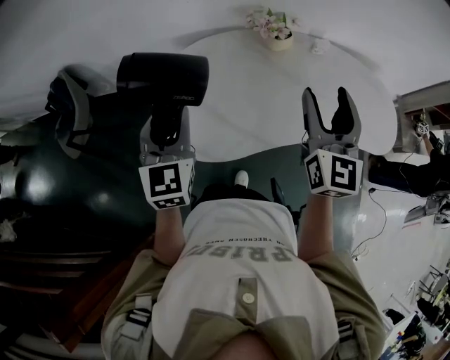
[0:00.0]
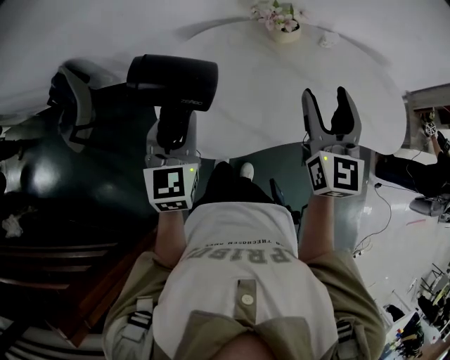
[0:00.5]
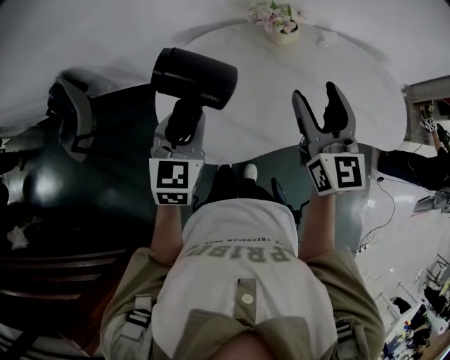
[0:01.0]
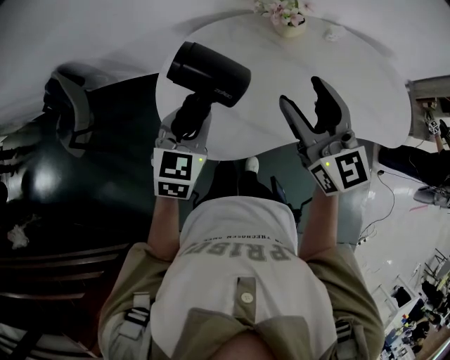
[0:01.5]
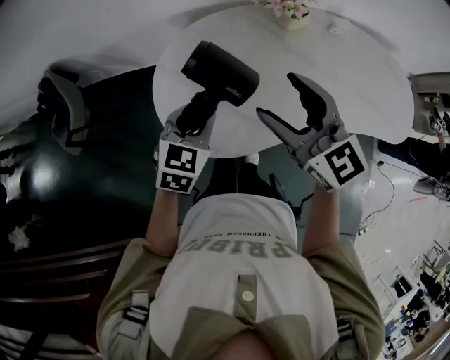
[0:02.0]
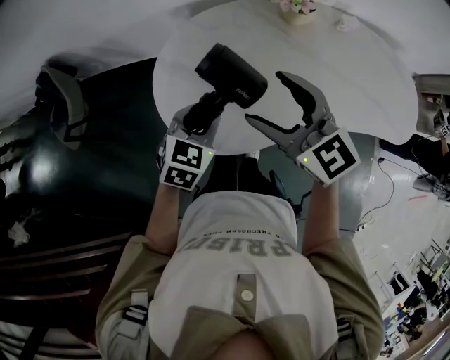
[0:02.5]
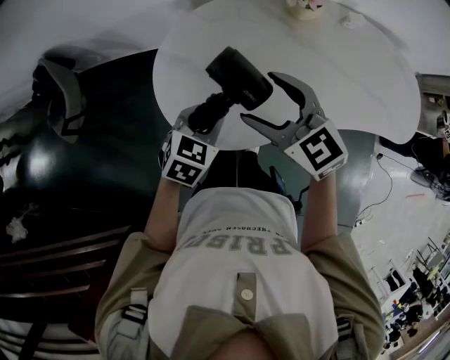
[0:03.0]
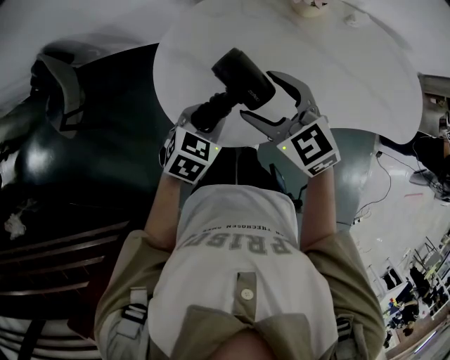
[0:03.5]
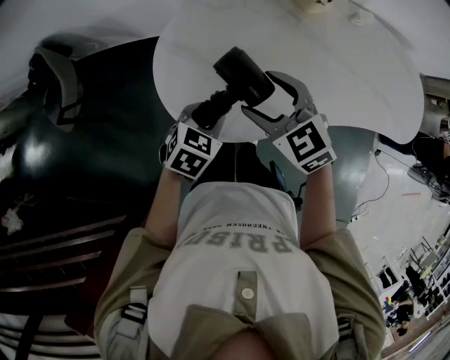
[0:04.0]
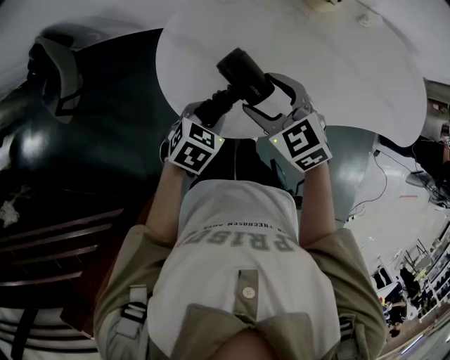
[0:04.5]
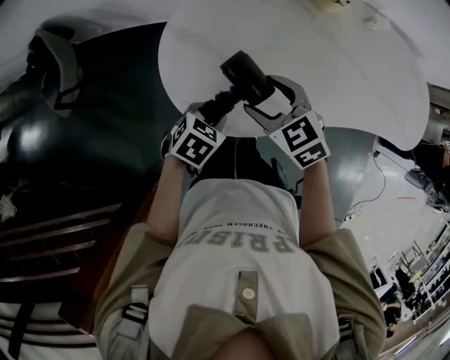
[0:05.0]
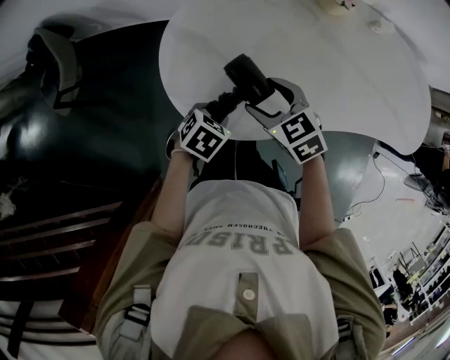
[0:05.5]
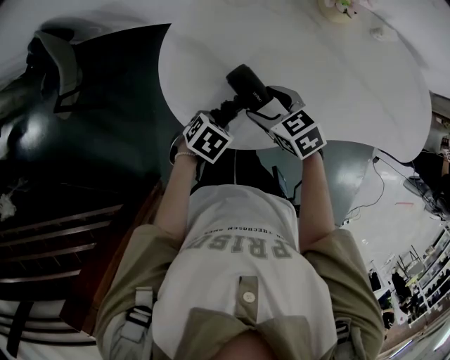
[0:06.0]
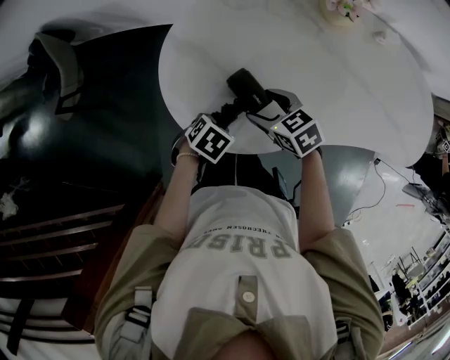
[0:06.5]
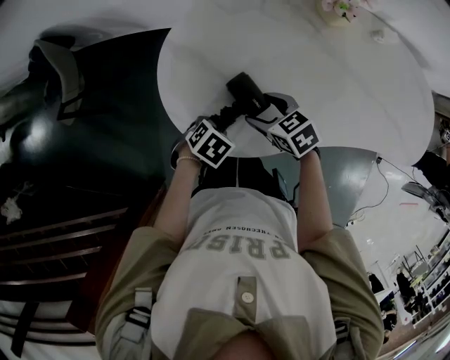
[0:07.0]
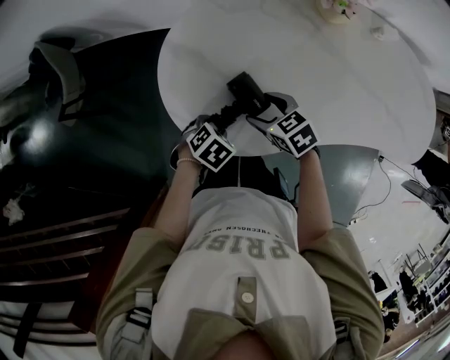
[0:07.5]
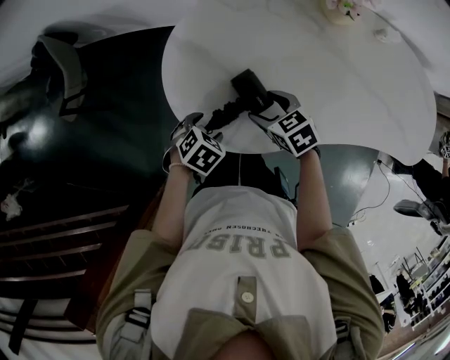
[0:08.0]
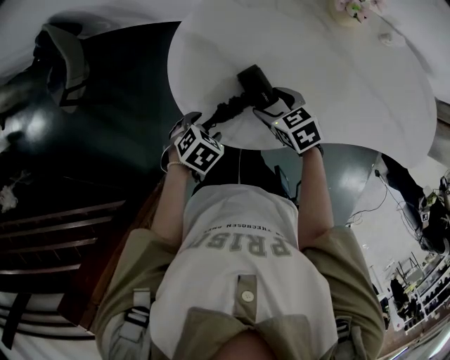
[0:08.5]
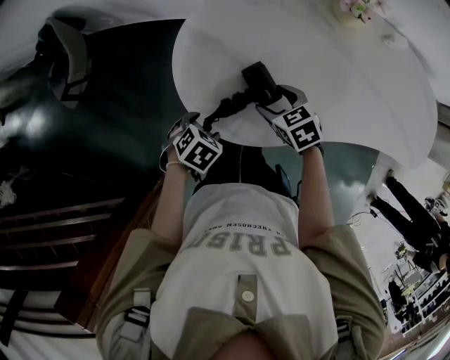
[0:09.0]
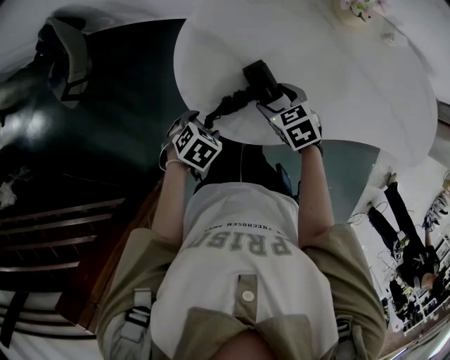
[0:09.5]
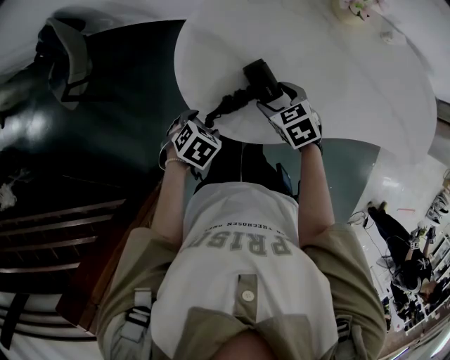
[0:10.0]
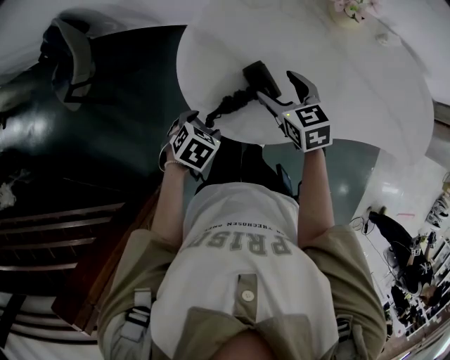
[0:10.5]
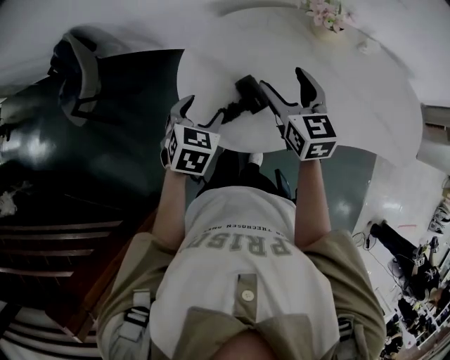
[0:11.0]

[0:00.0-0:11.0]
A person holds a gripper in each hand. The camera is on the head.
0:00.0 to 0:02.0: The right gripper travels to the left and downward by roughly 15 cm, and changes its angle by roughly 40 degrees; the left gripper heads downward, covering approximately 15 cm, and turns by about 30 degrees.
0:02.0 to 0:03.5: The right gripper moves downward and to the left, approximately 15 cm, and swivels some 20 degrees; the left gripper is displaced downward by approximately 10 cm.
0:03.5 to 0:05.5: Both grippers move downward, some 10 cm. The left gripper swivels approximately 20 degrees.
0:05.5 to 0:07.5: The right gripper heads downward, covering roughly 10 cm.
0:07.5 to 0:09.0: The left gripper shifts by roughly 5 cm, and opens its fingers.
0:09.0 to 0:11.0: The two grippers go about 20 cm upward. The left gripper swivels roughly 30 degrees. The right gripper tilts its fingers roughly 30 degrees upward.

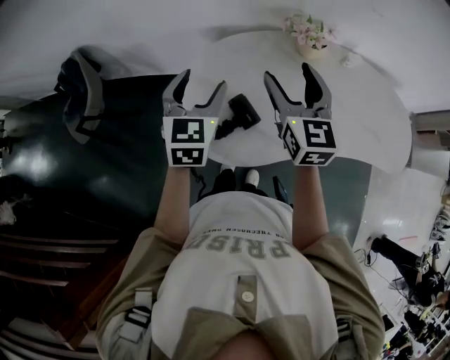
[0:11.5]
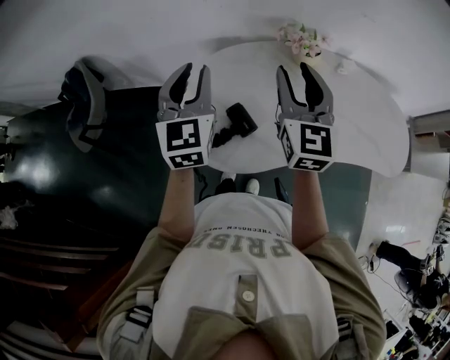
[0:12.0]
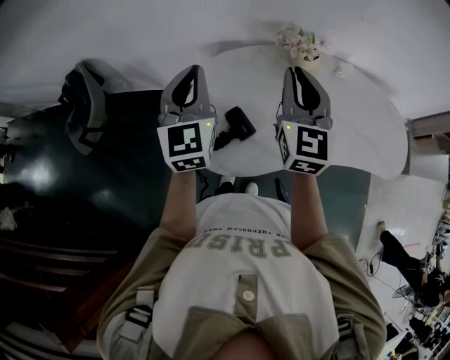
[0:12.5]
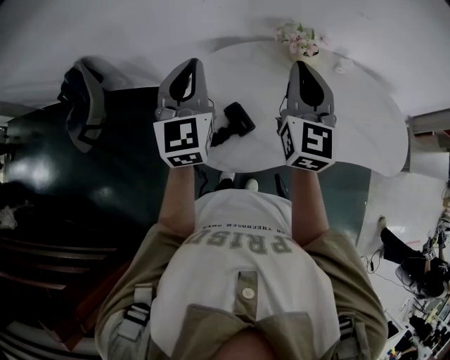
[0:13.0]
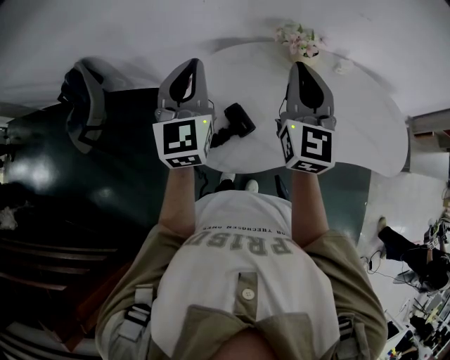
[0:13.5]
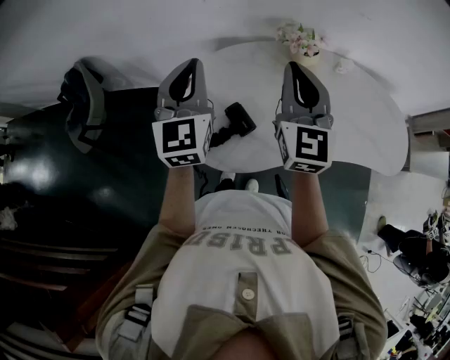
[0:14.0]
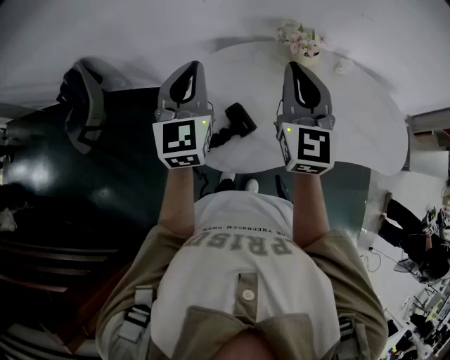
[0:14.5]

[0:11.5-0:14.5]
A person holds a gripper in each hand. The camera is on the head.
0:11.5 to 0:13.0: The two grippers go about 10 cm upward. The right gripper closes; the left gripper changes its angle by roughly 20 degrees, and closes up.
0:13.0 to 0:14.5: The grippers make only small movements.

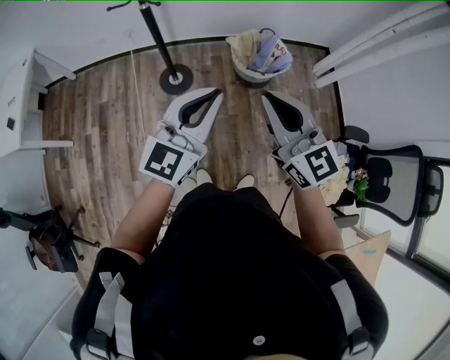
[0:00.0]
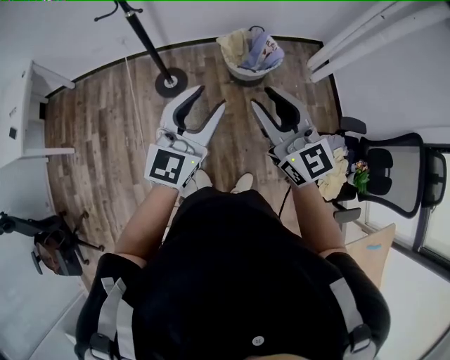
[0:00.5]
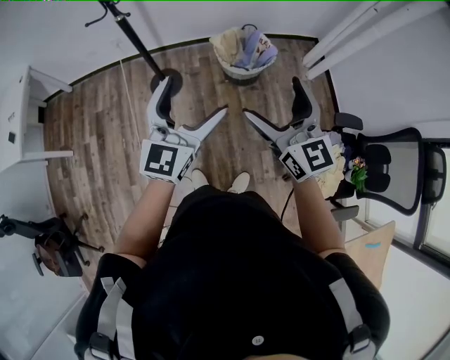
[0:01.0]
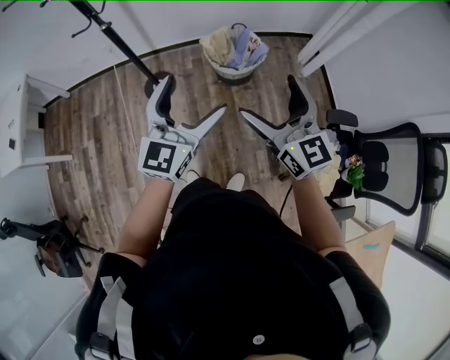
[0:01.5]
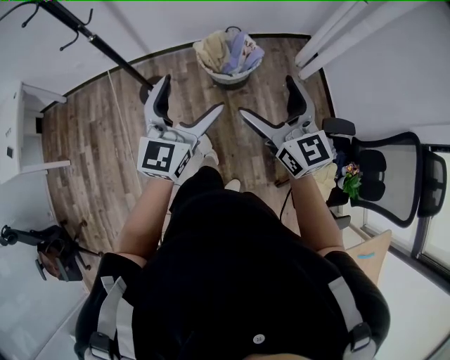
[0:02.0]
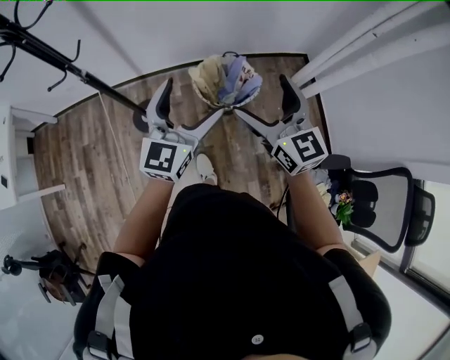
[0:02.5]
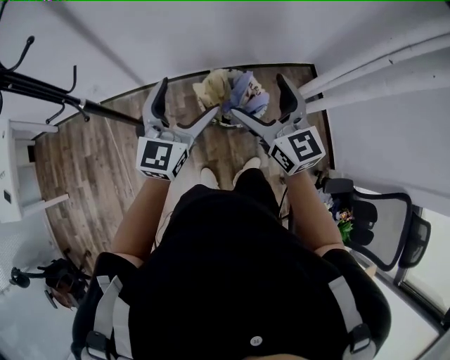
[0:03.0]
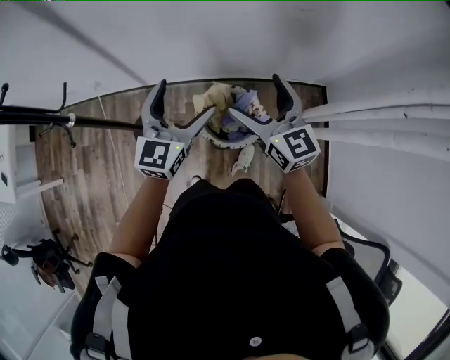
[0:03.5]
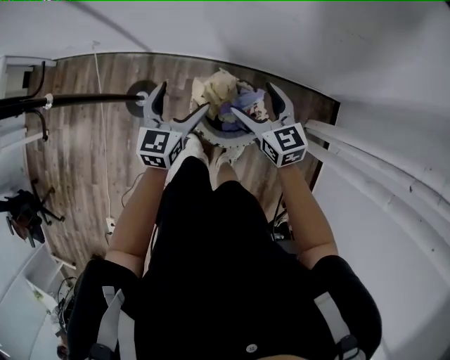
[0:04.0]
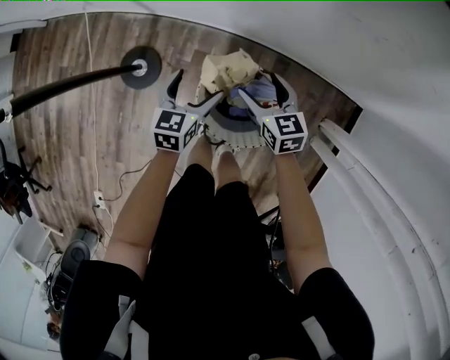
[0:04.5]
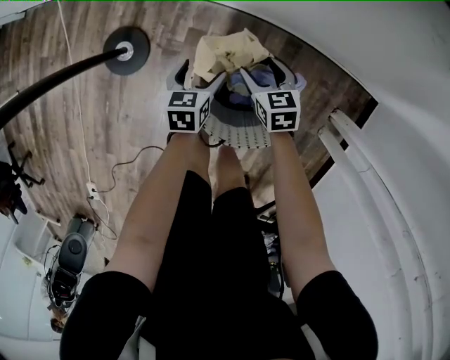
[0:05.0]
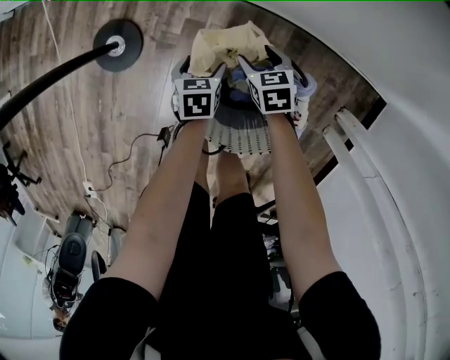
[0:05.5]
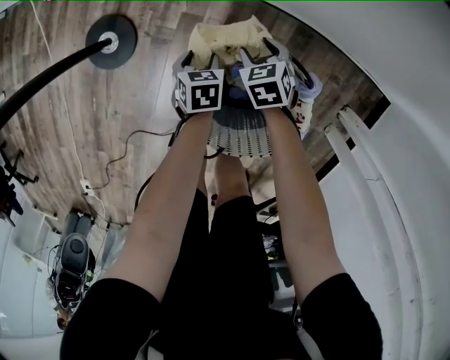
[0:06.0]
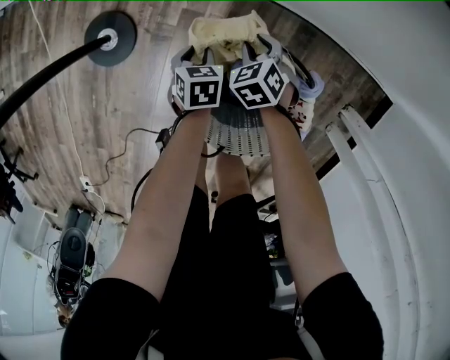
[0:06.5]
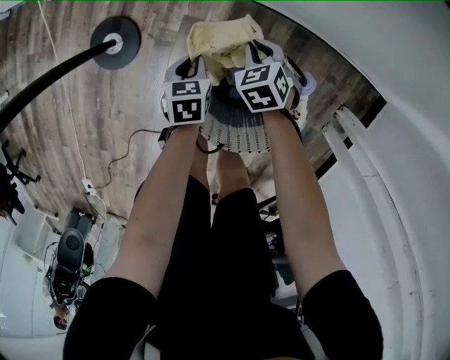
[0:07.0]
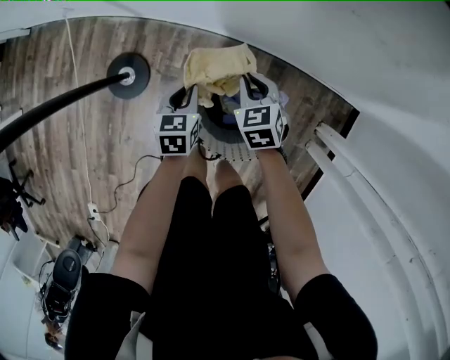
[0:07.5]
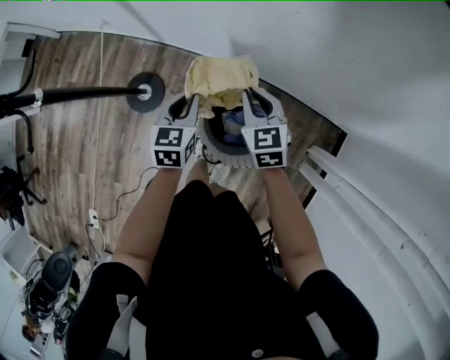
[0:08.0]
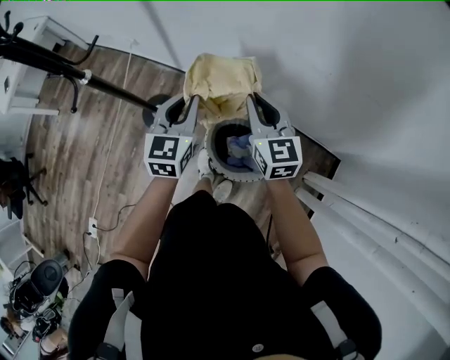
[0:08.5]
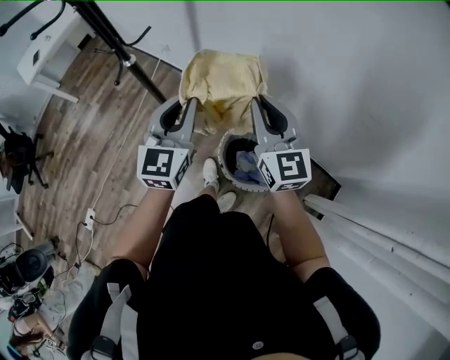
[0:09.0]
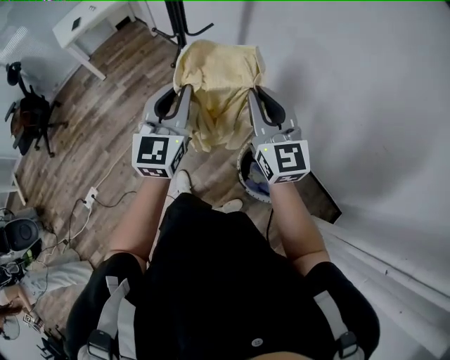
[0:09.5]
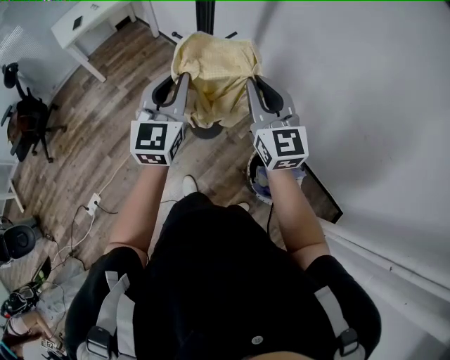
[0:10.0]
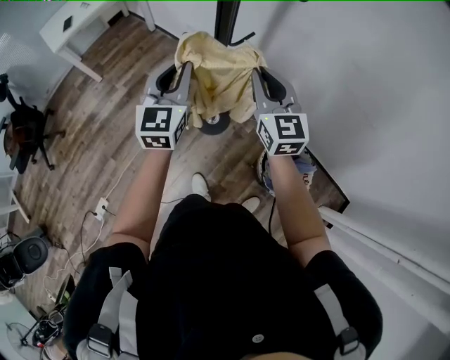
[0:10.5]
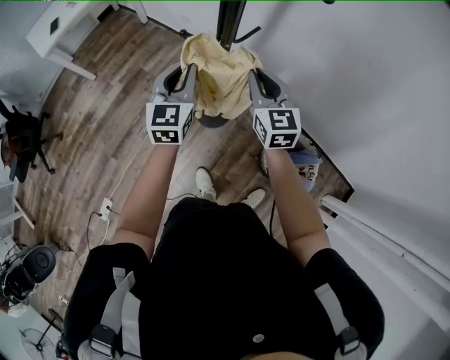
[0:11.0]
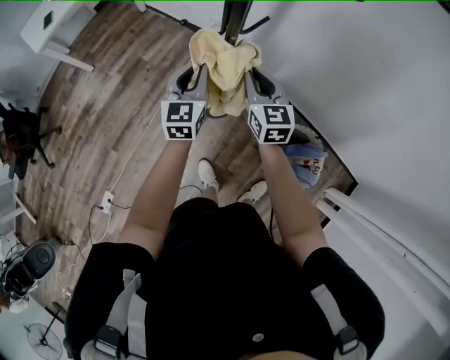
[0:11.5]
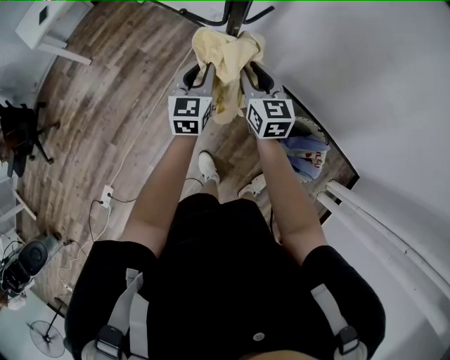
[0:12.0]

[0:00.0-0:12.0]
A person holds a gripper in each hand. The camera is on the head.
0:00.0 to 0:02.0: Both grippers move to the right, some 25 cm. The left gripper opens. The right gripper opens its fingers.
0:02.0 to 0:04.0: The two grippers travel together, forward, some 60 cm. The right gripper turns by some 30 degrees. Meanwhile the left gripper is displaced downward by roughly 25 cm, and swivels roughly 30 degrees.
0:04.0 to 0:06.0: Both grippers travel together downward, some 60 cm. The left gripper angles its fingers downward, by approximately 40 degrees, and closes up; the right gripper tilts its fingers approximately 40 degrees downward, and closes its fingers.
0:06.0 to 0:08.0: Both grippers travel together upward, approximately 50 cm. The left gripper angles its fingers upward, by approximately 30 degrees, and closes up; the right gripper changes its angle by approximately 30 degrees.
0:08.0 to 0:10.0: The right gripper moves roughly 50 cm, and tips its fingers upward by about 40 degrees; the left gripper shifts by some 60 cm, and angles its fingers upward, by approximately 30 degrees.
0:10.0 to 0:12.0: Both grippers travel together downward and forward, about 30 cm. The left gripper rotates some 20 degrees; the right gripper swivels some 30 degrees.
